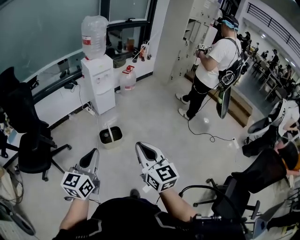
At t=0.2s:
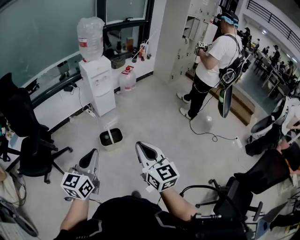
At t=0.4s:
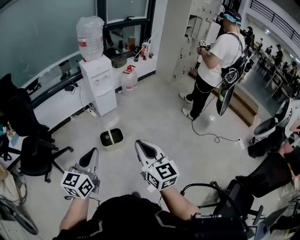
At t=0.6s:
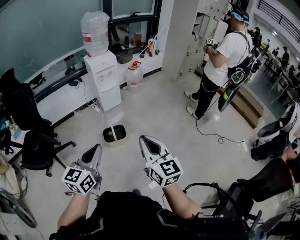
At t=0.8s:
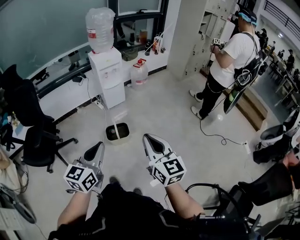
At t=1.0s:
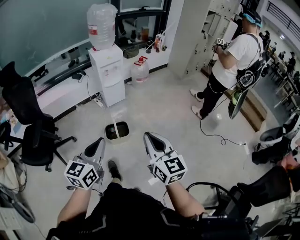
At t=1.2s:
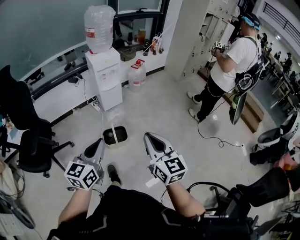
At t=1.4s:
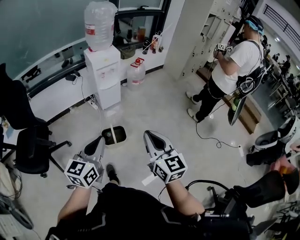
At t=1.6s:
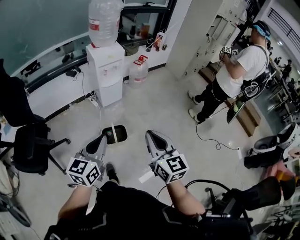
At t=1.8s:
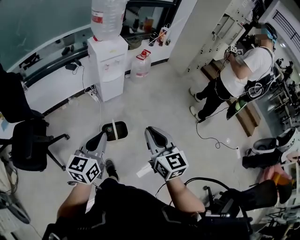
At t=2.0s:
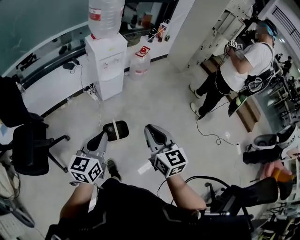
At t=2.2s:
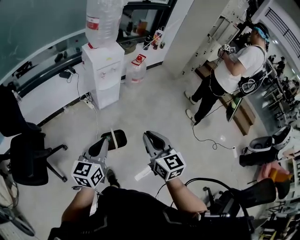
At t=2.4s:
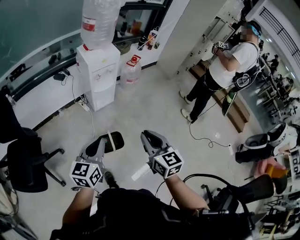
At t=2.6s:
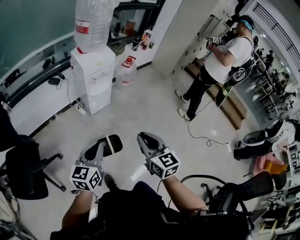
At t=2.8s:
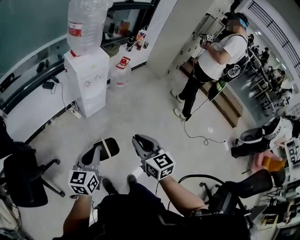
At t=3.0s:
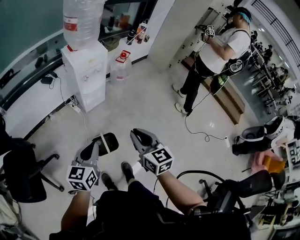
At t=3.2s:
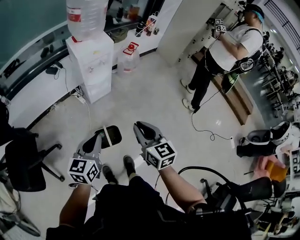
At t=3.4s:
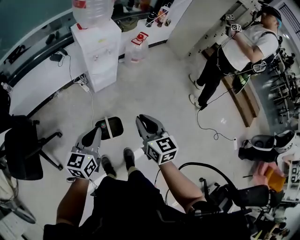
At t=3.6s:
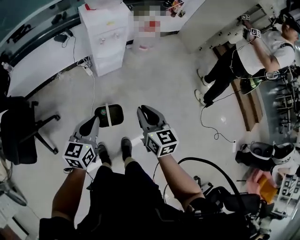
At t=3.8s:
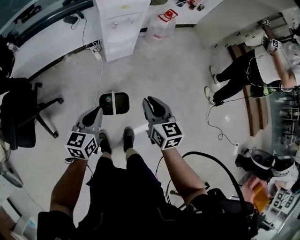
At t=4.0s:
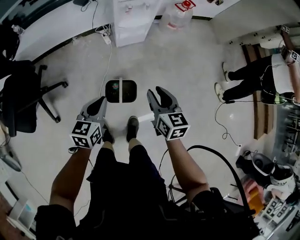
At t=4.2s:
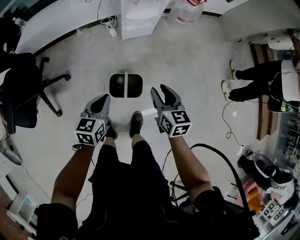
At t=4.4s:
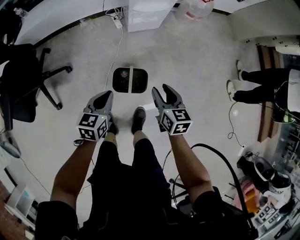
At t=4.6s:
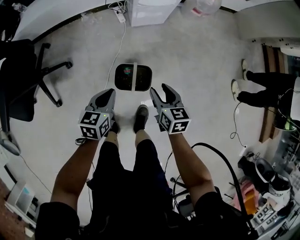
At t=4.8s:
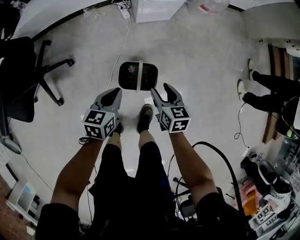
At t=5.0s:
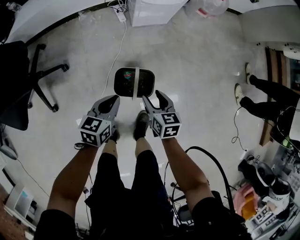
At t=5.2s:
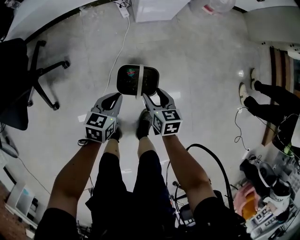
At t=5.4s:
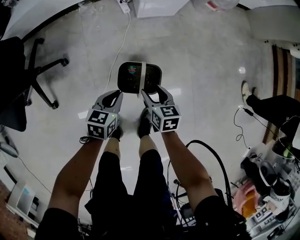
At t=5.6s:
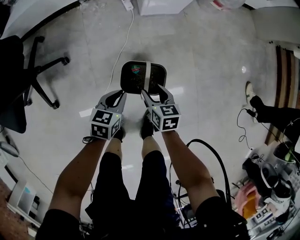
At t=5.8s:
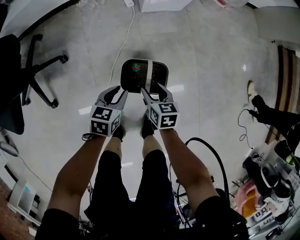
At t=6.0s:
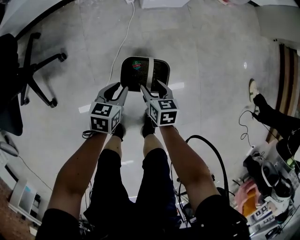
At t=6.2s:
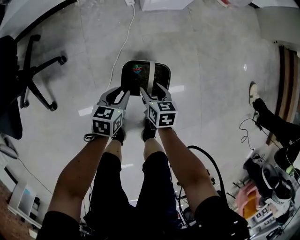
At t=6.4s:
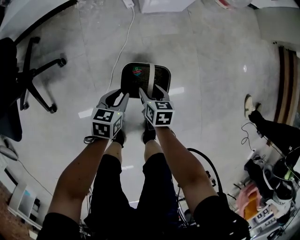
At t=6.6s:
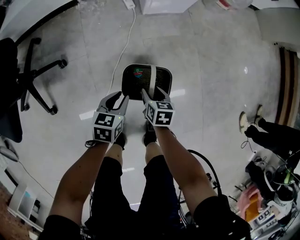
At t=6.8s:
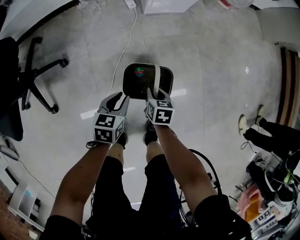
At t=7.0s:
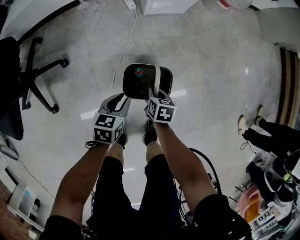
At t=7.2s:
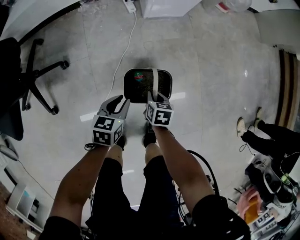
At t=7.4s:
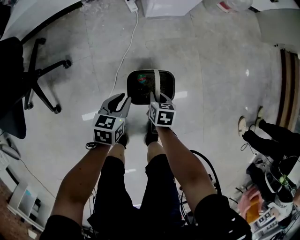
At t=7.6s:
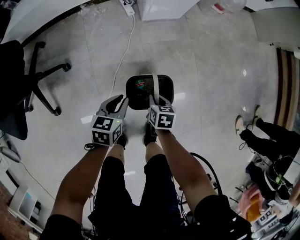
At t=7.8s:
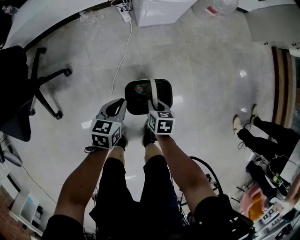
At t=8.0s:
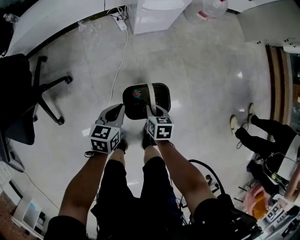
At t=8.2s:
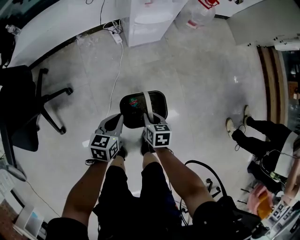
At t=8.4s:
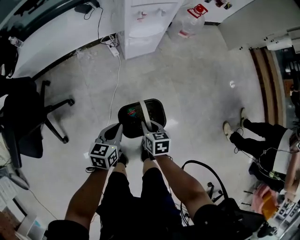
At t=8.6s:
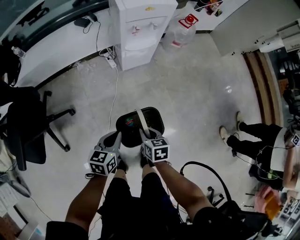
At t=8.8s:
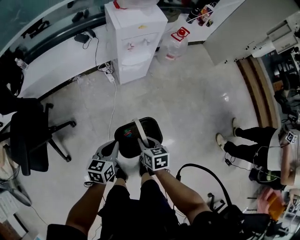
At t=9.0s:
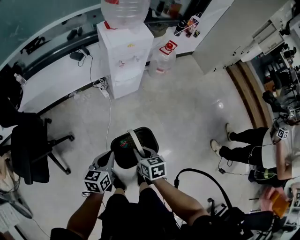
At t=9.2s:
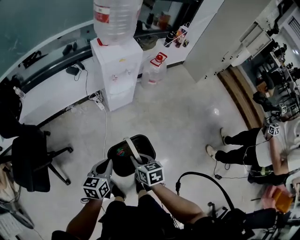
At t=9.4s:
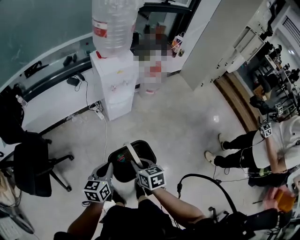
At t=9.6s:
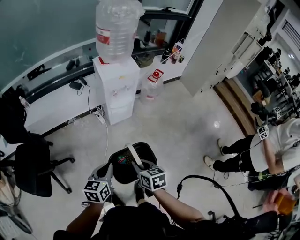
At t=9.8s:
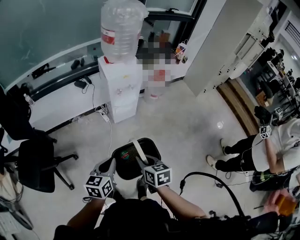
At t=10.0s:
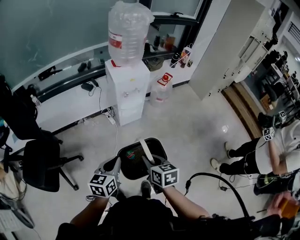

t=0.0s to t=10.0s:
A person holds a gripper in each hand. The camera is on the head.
t=0.0s to t=1.4s: Both grippers move forward, approximately 20 cm.
t=1.4s to t=2.8s: The grippers both shift forward, to the left and downward by about 25 cm.
t=2.8s to t=4.2s: The left gripper moves downward, approximately 25 cm, and swivels some 30 degrees. The right gripper travels downward and forward by roughly 30 cm, swivels roughly 20 degrees, and opens up.
t=4.2s to t=5.8s: The grippers both shift downward by some 30 cm. The right gripper swivels about 20 degrees, and opens up. The left gripper opens up.
t=5.8s to t=7.2s: The right gripper heads downward, covering about 10 cm, and closes.
t=7.2s to t=8.6s: The two grippers go about 30 cm upward. The left gripper closes up.
t=8.6s to t=10.0s: The two grippers go approximately 30 cm upward.

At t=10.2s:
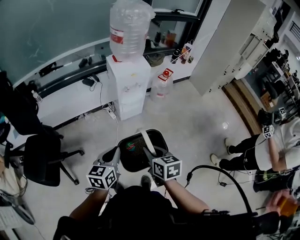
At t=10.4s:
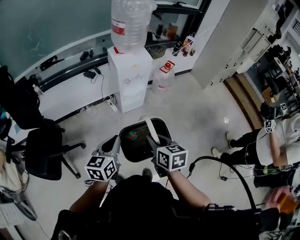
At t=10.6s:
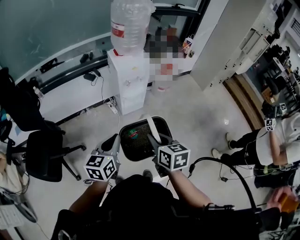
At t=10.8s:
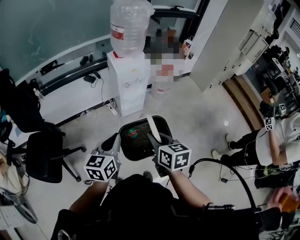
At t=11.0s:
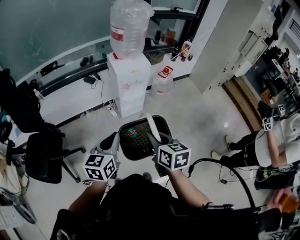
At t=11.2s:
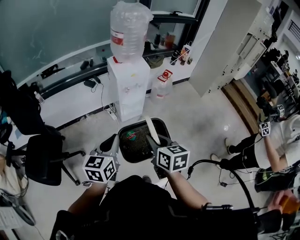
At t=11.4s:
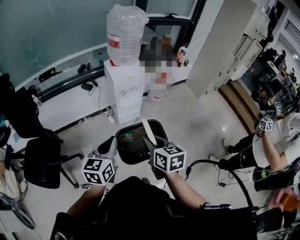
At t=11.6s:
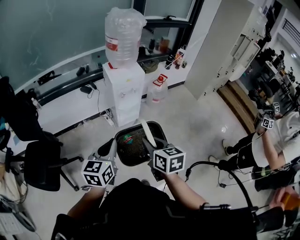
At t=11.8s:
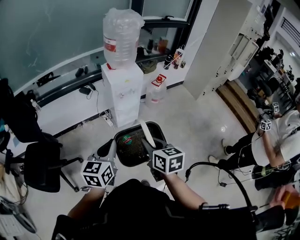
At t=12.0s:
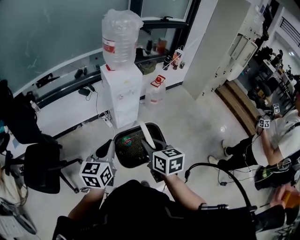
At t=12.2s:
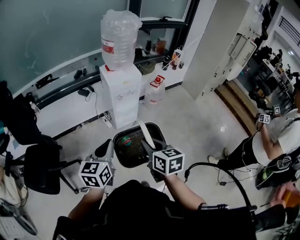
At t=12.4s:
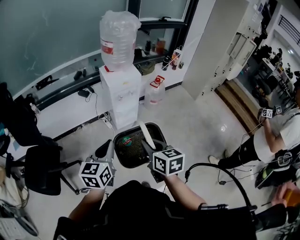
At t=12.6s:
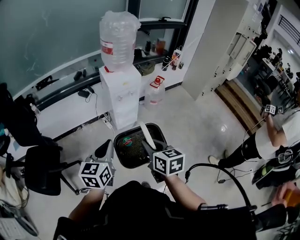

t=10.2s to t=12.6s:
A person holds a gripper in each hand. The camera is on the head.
t=10.2s to t=11.4s: Both grippers move upward, roughly 10 cm.
t=11.4s to t=12.6s: The grippers move only a little.

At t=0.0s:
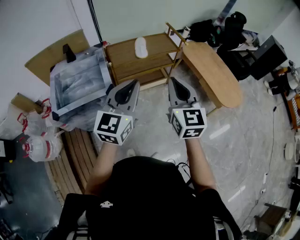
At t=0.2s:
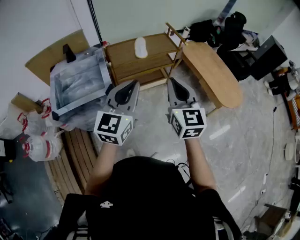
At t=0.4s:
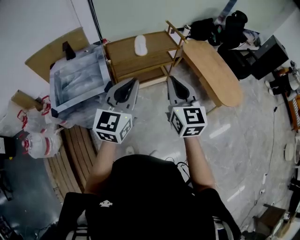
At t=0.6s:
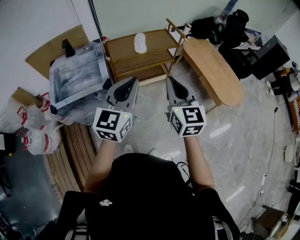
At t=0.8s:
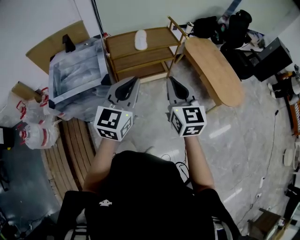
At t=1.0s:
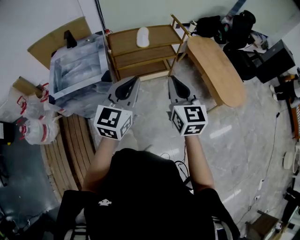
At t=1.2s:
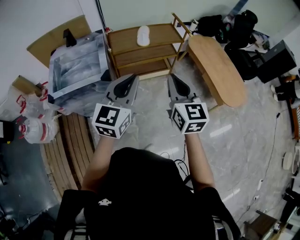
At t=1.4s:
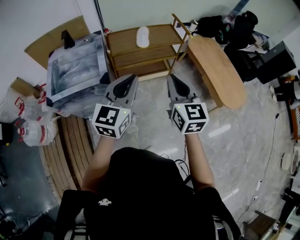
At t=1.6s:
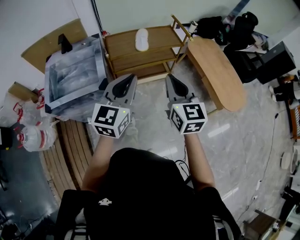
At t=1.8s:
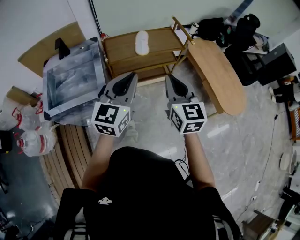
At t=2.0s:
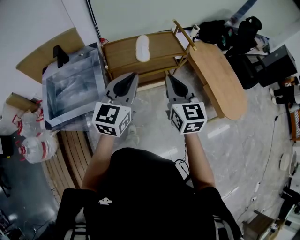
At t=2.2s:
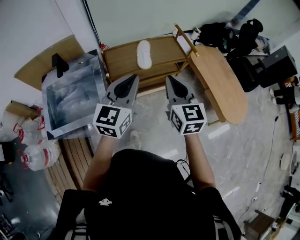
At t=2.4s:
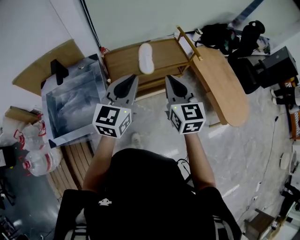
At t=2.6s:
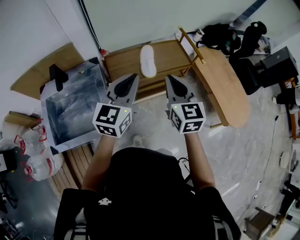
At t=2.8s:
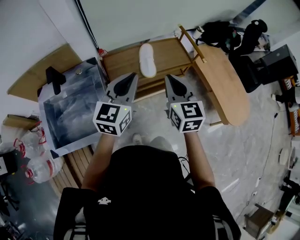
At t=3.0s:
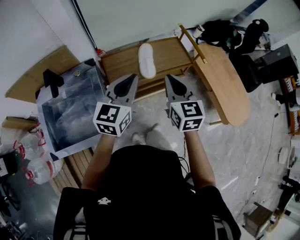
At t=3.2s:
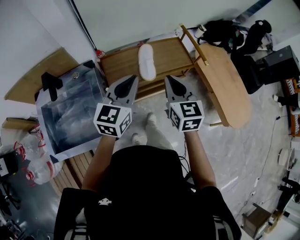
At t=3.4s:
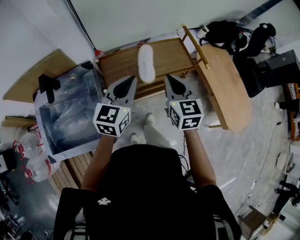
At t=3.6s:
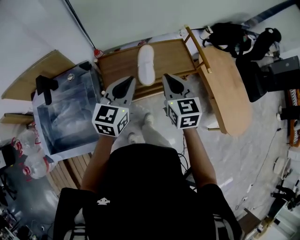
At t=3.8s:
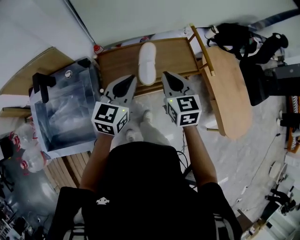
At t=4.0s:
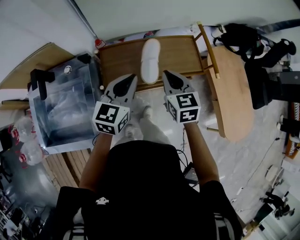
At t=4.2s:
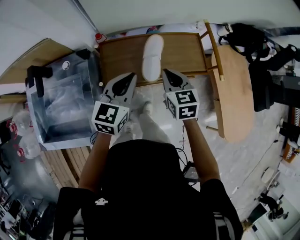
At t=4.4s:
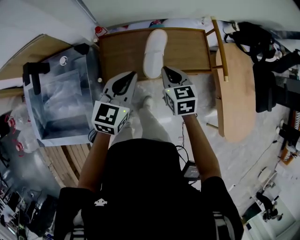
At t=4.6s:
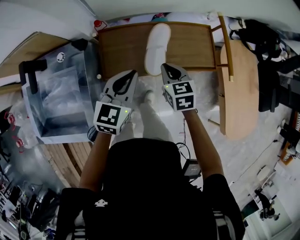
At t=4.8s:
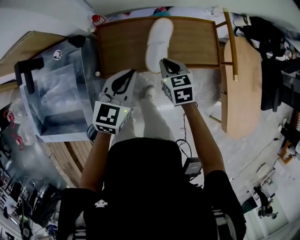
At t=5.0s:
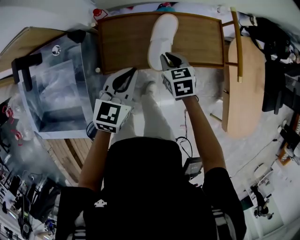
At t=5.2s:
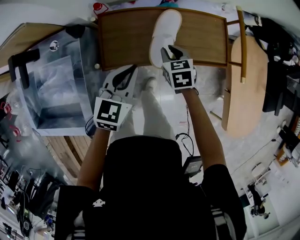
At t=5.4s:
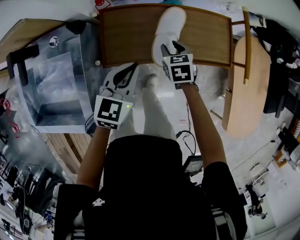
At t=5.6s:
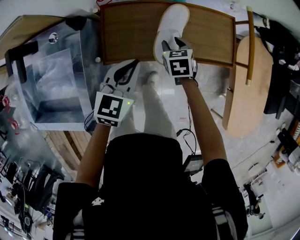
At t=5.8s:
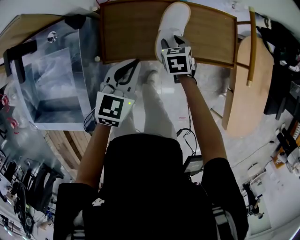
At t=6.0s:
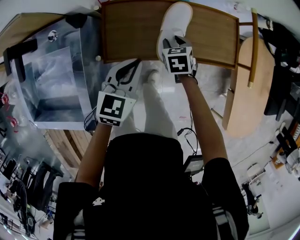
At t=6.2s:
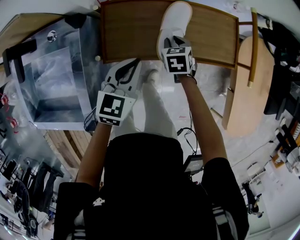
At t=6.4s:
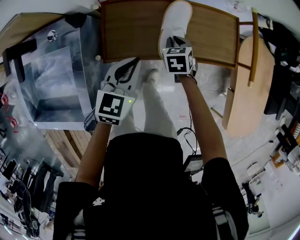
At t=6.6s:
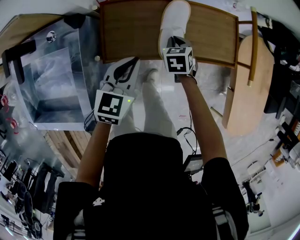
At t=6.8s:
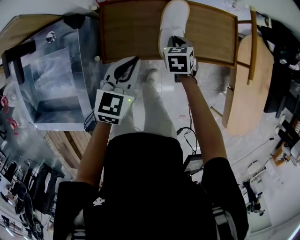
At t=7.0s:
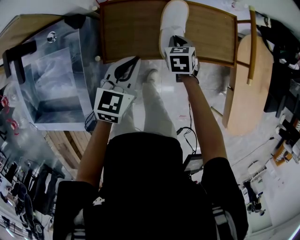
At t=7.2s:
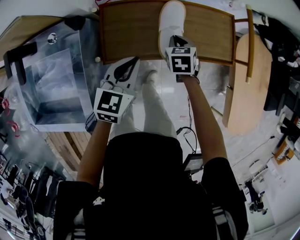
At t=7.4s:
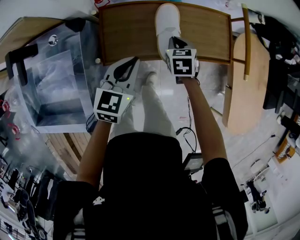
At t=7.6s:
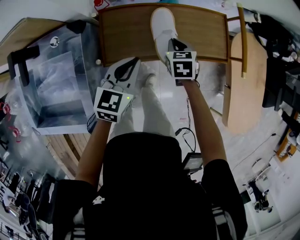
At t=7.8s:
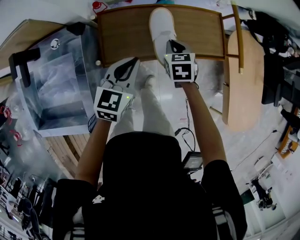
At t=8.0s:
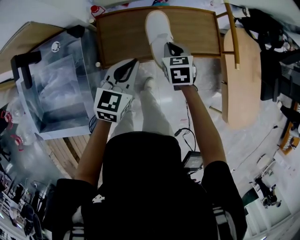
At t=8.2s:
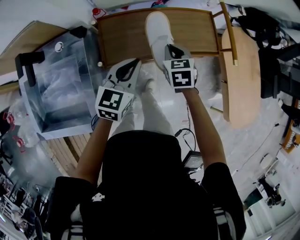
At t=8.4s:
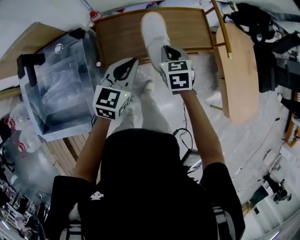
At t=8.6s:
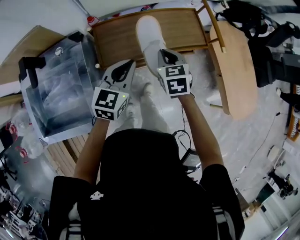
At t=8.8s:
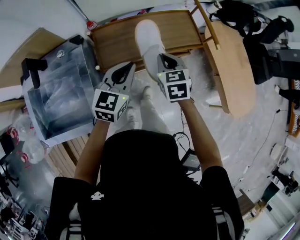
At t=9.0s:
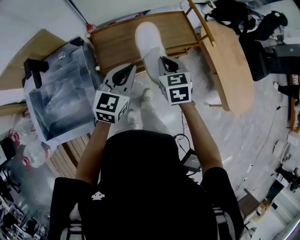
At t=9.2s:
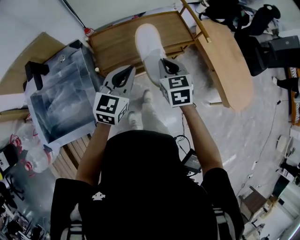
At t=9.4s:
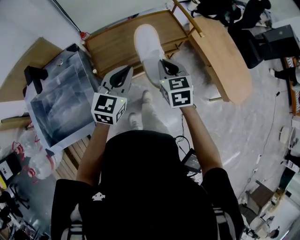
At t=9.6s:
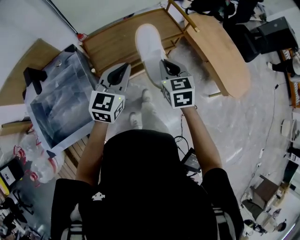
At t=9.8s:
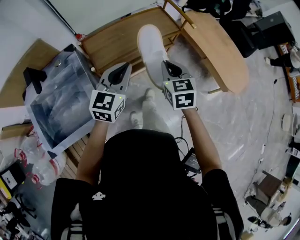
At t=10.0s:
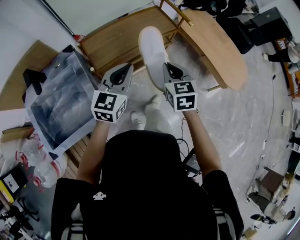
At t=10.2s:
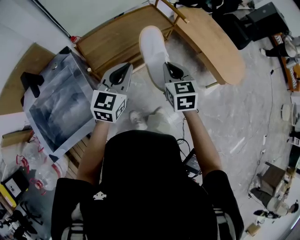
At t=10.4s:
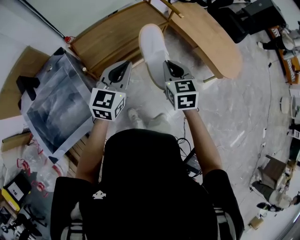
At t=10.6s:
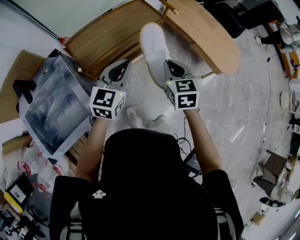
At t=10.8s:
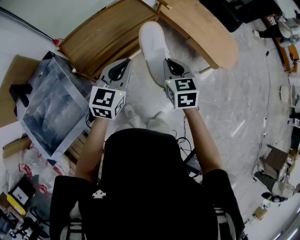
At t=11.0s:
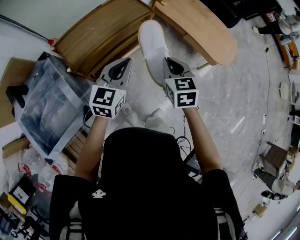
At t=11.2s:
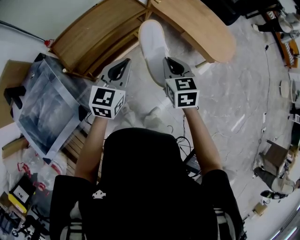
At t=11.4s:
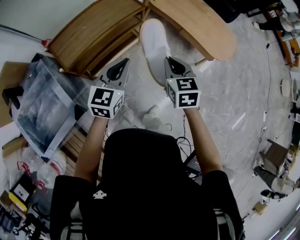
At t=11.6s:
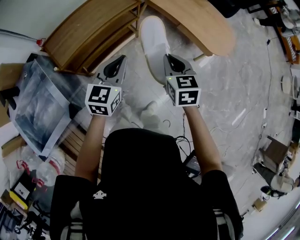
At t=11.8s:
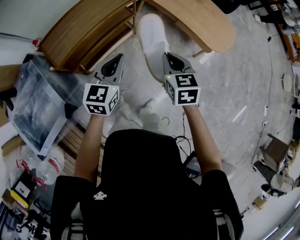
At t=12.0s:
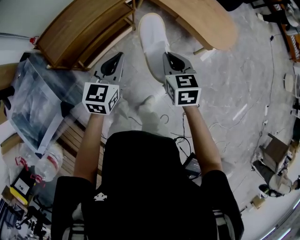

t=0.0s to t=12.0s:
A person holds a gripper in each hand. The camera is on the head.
t=0.0s to t=1.6s: The two grippers go approximately 10 cm forward and downward.
t=1.6s to t=3.0s: Both grippers travel together forward, roughly 30 cm.
t=3.0s to t=4.4s: The right gripper travels downward and forward by about 30 cm, and rotates about 30 degrees, while the left gripper moves forward and downward, some 20 cm.
t=4.4s to t=6.0s: The right gripper is displaced downward by approximately 20 cm, turns by roughly 20 degrees, and opens its fingers. Meanwhile the left gripper heads downward, covering some 15 cm.
t=6.0s to t=7.6s: The right gripper moves upward, approximately 5 cm, and closes up.
t=7.6s to t=9.0s: Both grippers travel together upward and backward, roughly 20 cm.
t=9.0s to t=10.4s: The right gripper heads backward and to the right, covering roughly 20 cm, while the left gripper travels backward and to the right by some 10 cm.
t=10.4s to t=12.0s: Both grippers move to the right, approximately 20 cm.
